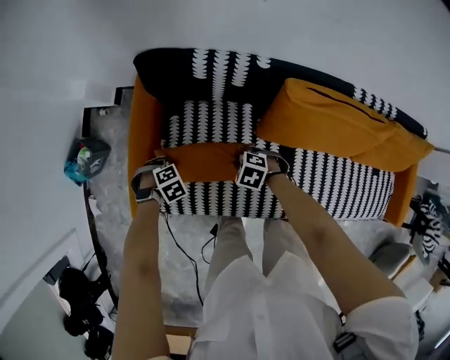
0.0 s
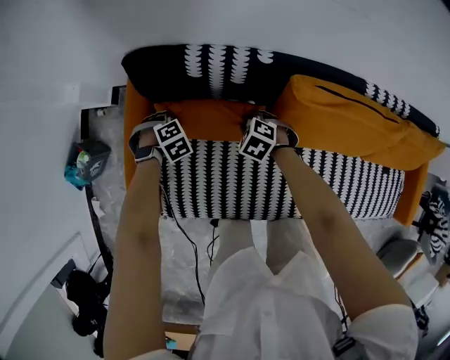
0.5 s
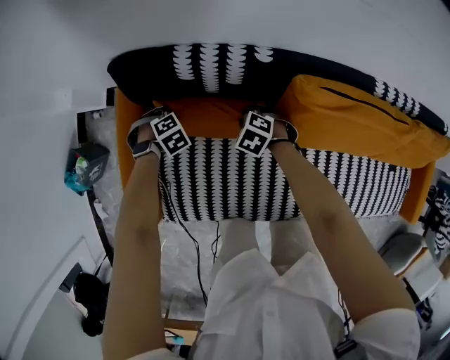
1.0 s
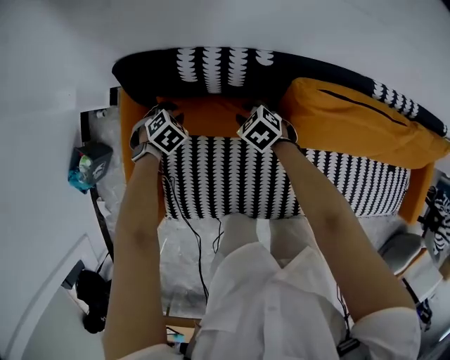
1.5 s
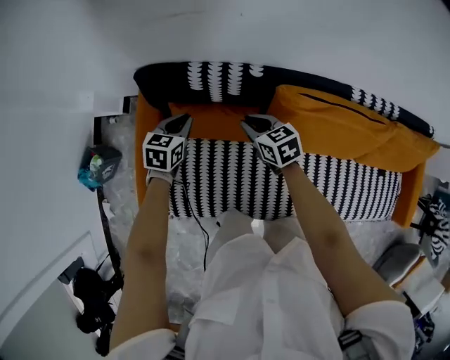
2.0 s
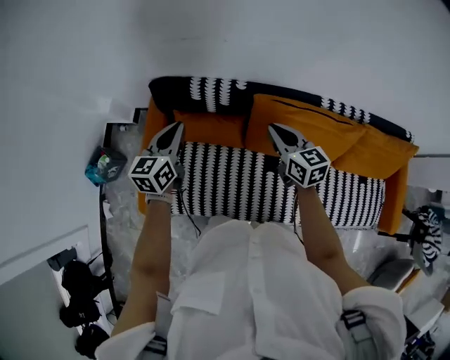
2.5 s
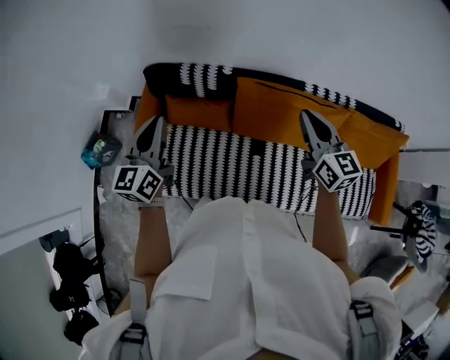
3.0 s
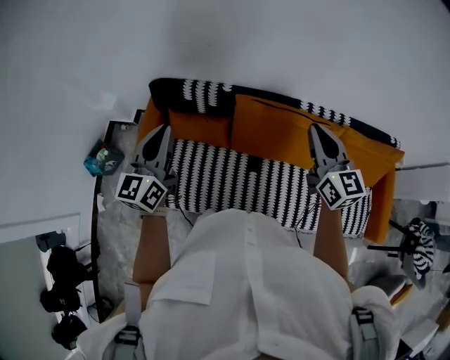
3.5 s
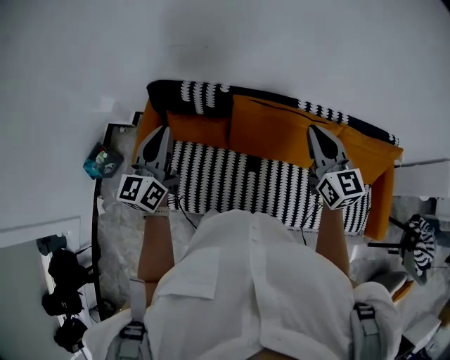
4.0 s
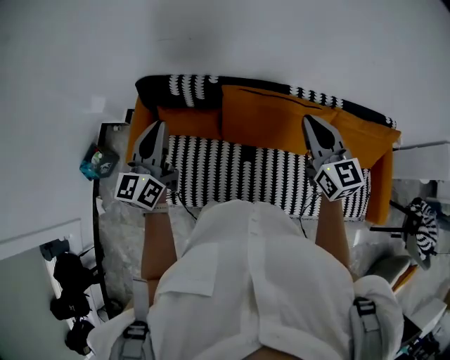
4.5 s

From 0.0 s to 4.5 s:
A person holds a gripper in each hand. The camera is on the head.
From 0.0 s to 2.0 s: The left gripper ends up roughly 25 cm from where it was, and tilts its fingers roughly 40 degrees upward. The right gripper moves some 25 cm, and changes its angle by roughly 60 degrees.
From 2.0 s to 4.5 s: The left gripper travels upward and backward by some 40 cm, and points its fingers approximately 50 degrees further upward. Meanwhile the right gripper heads upward, to the right and backward, covering some 50 cm, and points its fingers some 30 degrees further upward.

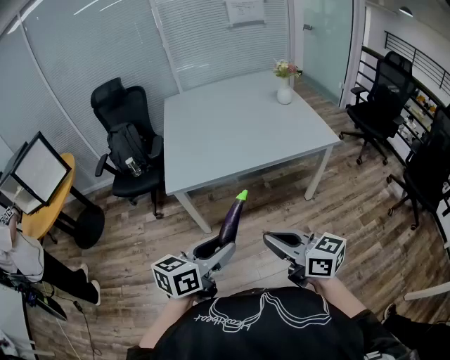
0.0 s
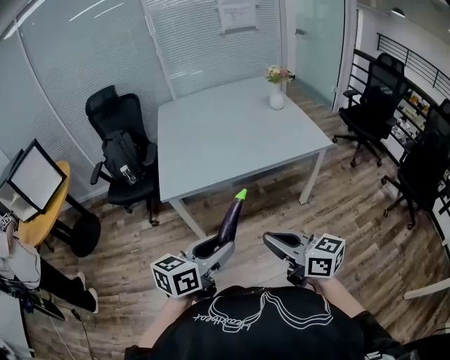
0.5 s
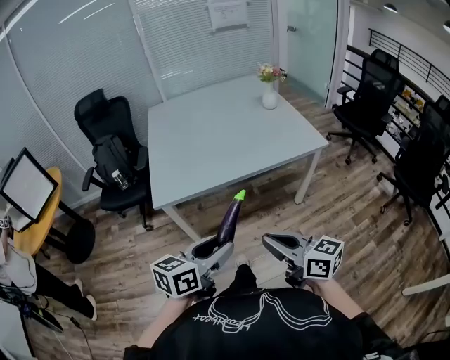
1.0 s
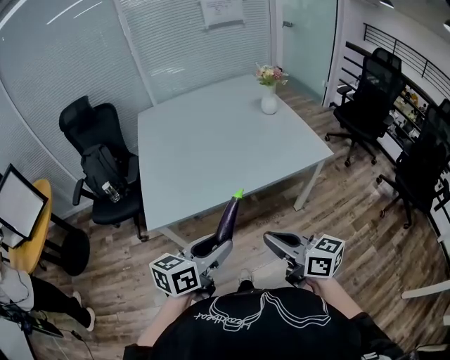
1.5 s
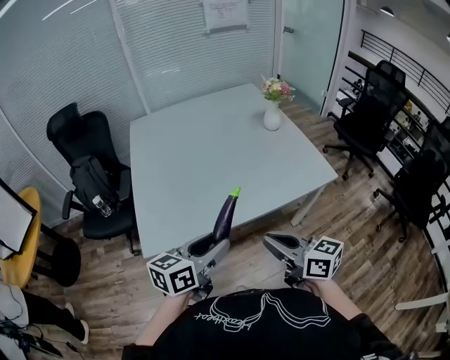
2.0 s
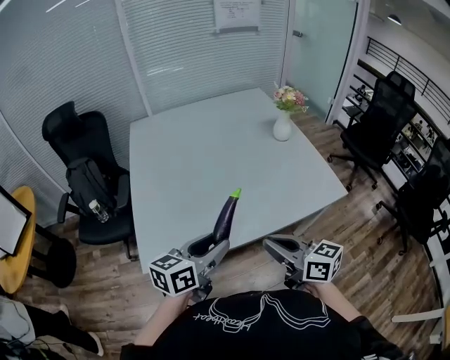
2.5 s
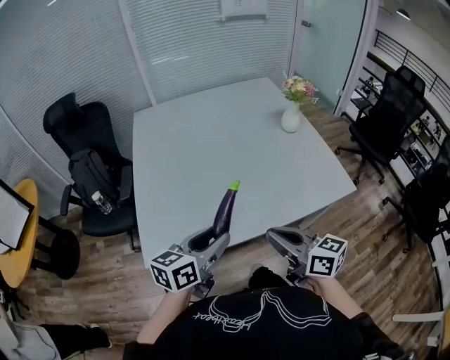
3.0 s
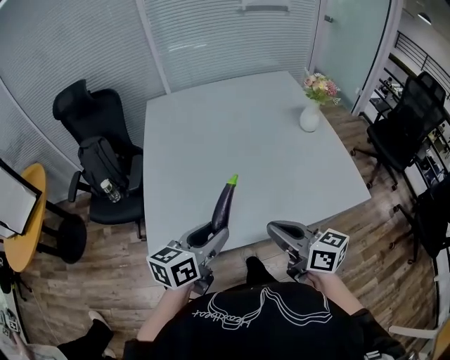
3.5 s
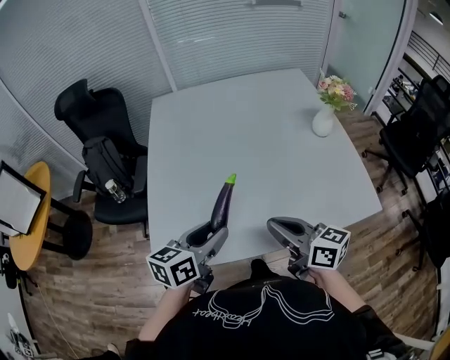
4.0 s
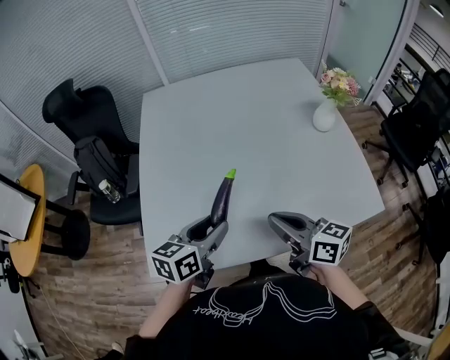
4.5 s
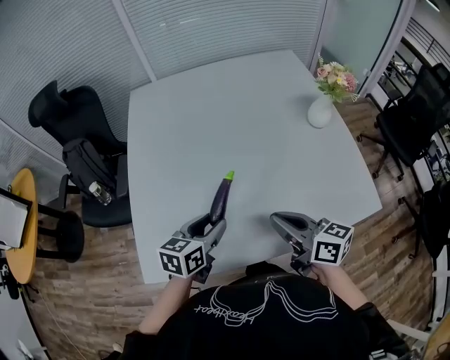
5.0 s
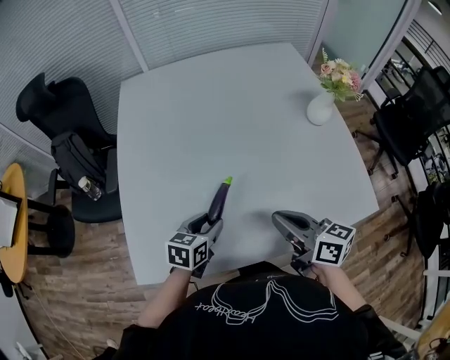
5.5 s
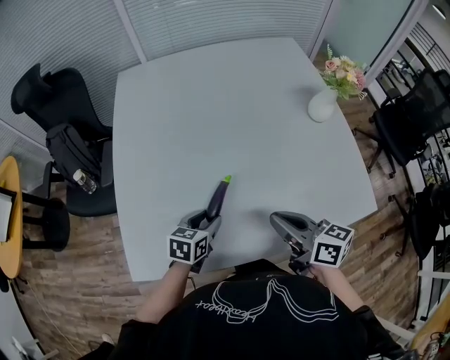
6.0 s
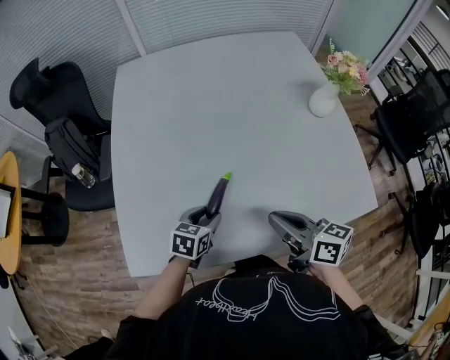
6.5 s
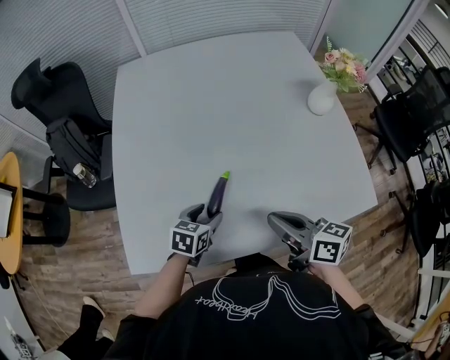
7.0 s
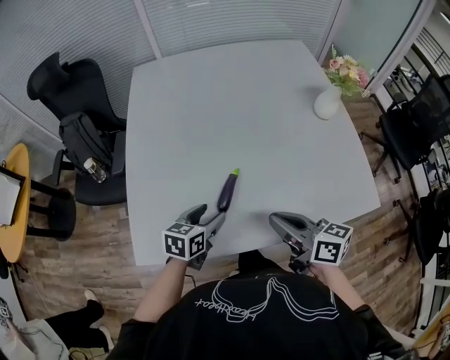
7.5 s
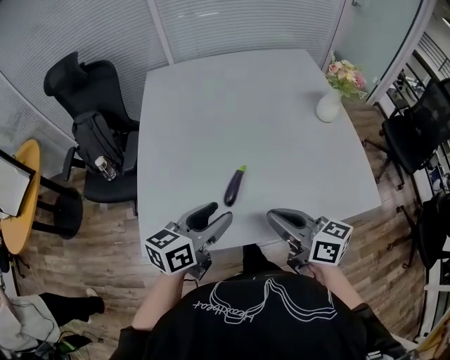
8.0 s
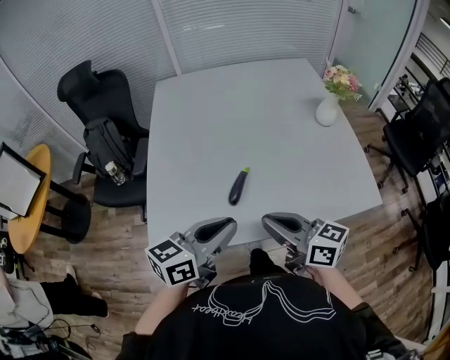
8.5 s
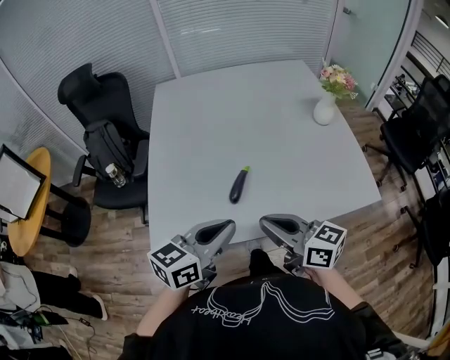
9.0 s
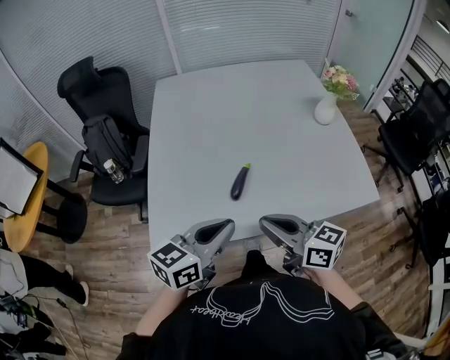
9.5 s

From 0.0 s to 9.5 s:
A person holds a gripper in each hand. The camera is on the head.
From 0.0 s to 2.0 s: Both grippers travel together forward, roughly 30 cm.
From 2.0 s to 4.0 s: Both grippers move forward, about 20 cm.
From 4.0 s to 5.5 s: The left gripper is displaced downward and forward by approximately 20 cm, and turns by some 20 degrees. The right gripper moves forward, downward and to the right, approximately 10 cm.
From 5.5 s to 7.5 s: The right gripper shifts by some 5 cm.
From 7.5 s to 9.5 s: The right gripper moves backward, to the left and upward, roughly 15 cm, while the left gripper travels upward and backward by some 25 cm, turns by approximately 30 degrees, and closes up.

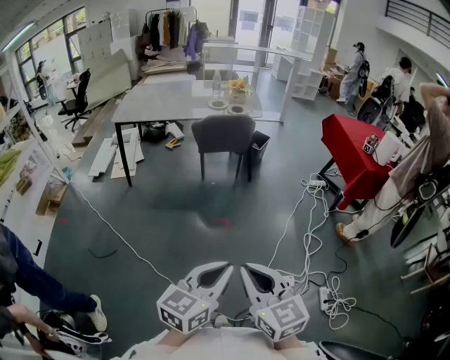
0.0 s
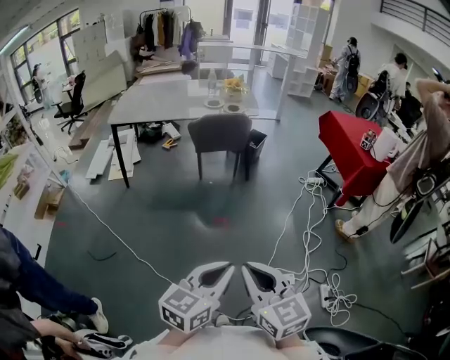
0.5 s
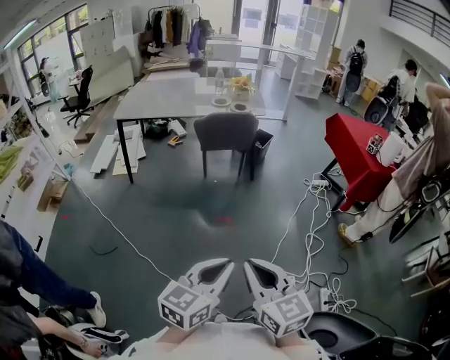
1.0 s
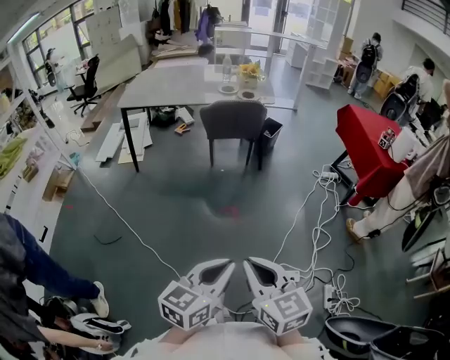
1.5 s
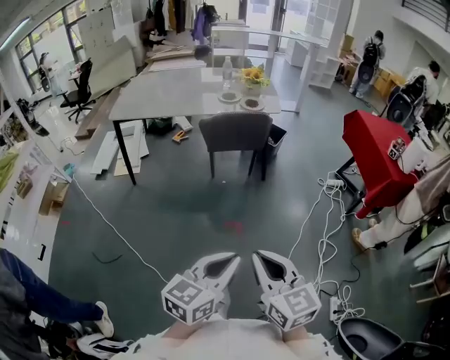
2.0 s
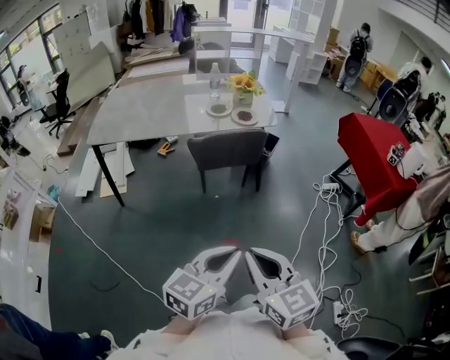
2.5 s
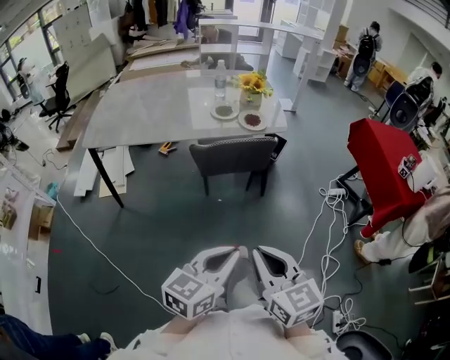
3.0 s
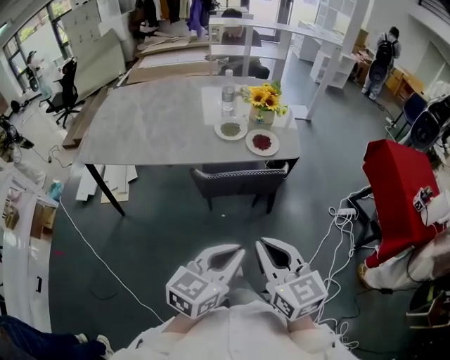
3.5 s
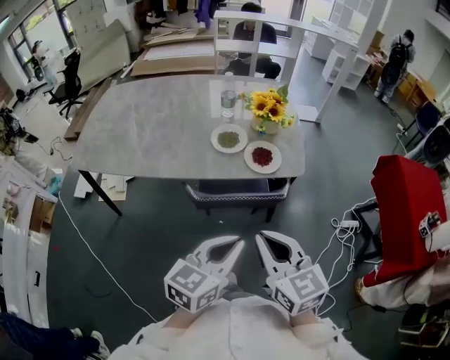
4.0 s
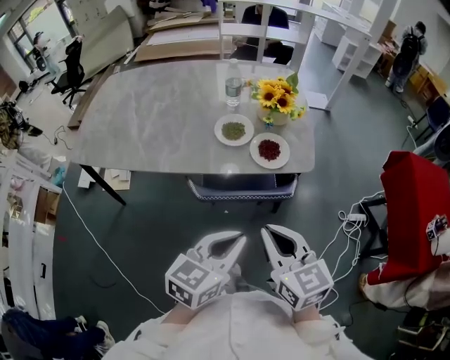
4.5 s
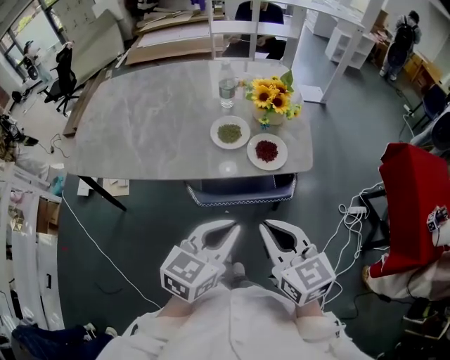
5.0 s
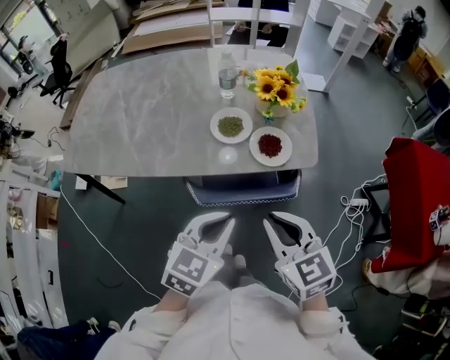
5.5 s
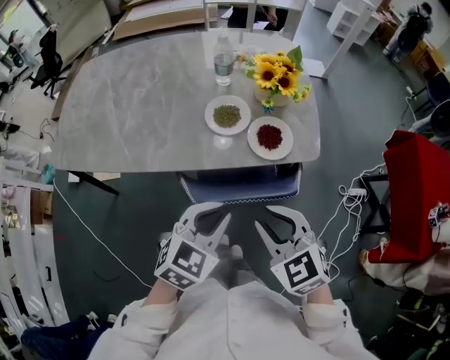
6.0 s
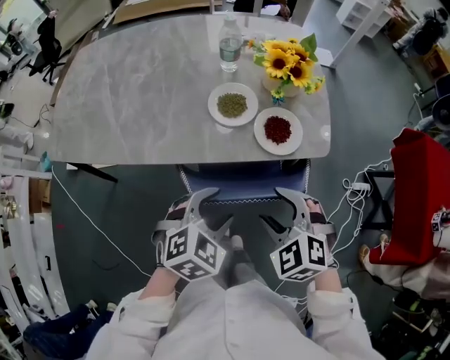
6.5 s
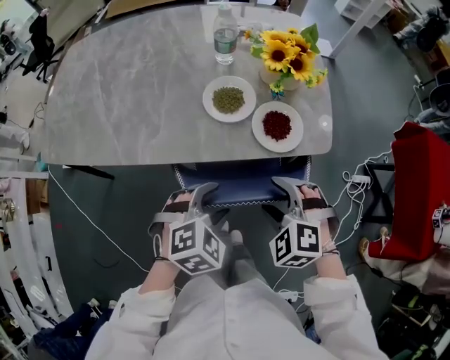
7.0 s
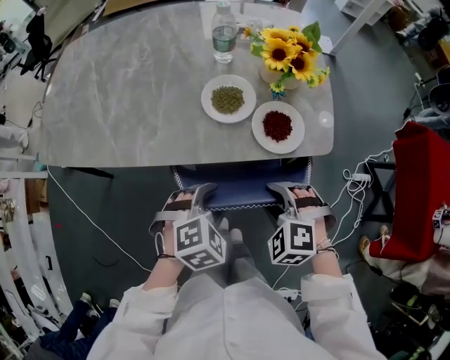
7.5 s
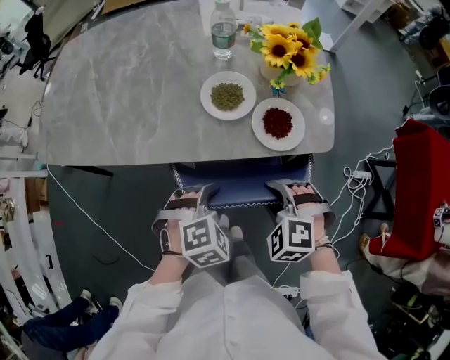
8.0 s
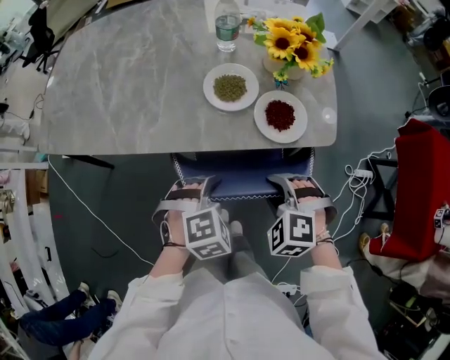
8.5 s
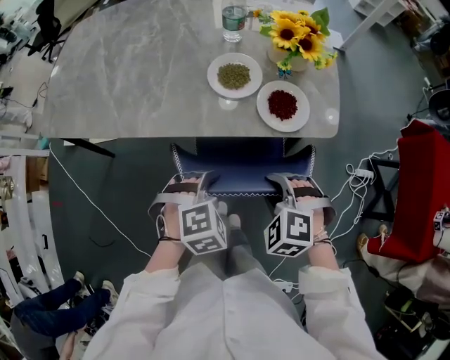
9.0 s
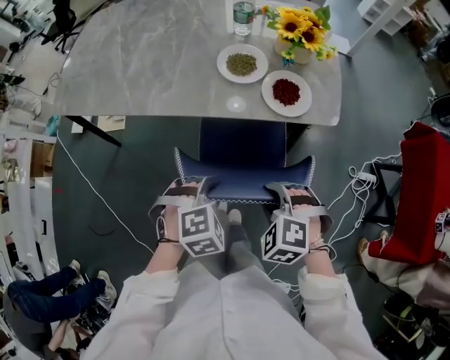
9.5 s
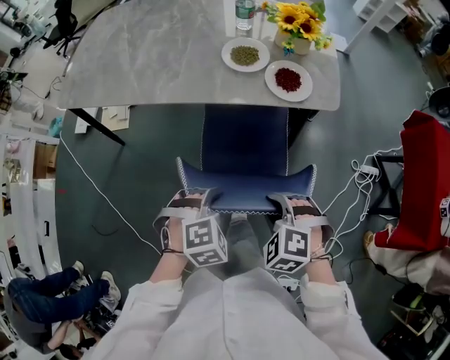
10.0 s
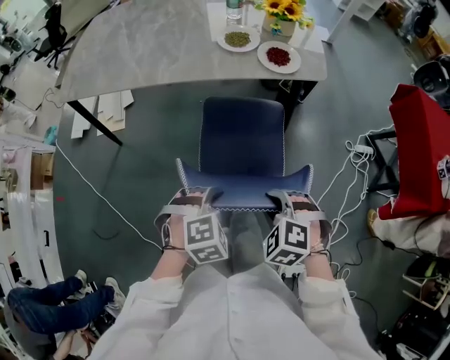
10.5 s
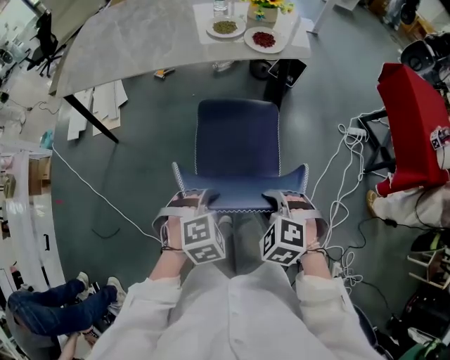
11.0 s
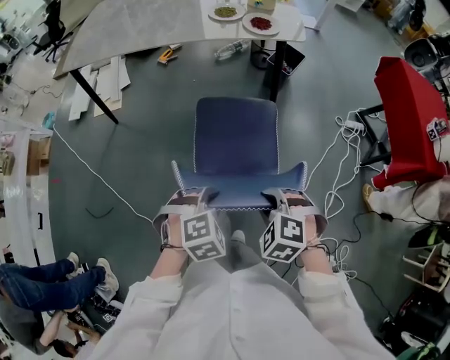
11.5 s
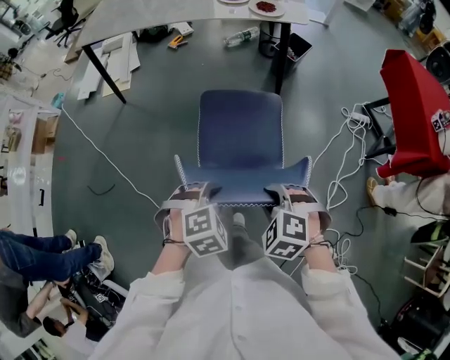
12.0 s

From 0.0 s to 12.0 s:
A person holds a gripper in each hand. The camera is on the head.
From 0.0 s to 2.0 s: Both grippers move forward, about 20 cm.
From 2.0 s to 4.0 s: The pair of grippers is taken forward, some 60 cm.
From 4.0 s to 6.0 s: The right gripper shifts some 15 cm forward and downward, and swivels roughly 30 degrees; the left gripper is displaced forward, downward and to the left by roughly 15 cm, and swivels about 30 degrees.
From 6.0 s to 8.0 s: The right gripper shifts about 15 cm downward and forward, turns by about 40 degrees, and opens and closes again; the left gripper heads downward, covering about 15 cm, rotates approximately 40 degrees, and opens up.
From 8.0 s to 10.0 s: The two grippers go approximately 20 cm backward.
From 10.0 s to 12.0 s: Both grippers move backward, roughly 40 cm.

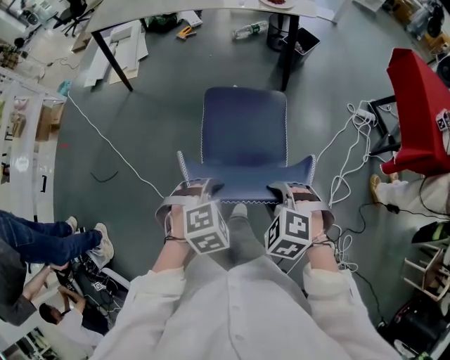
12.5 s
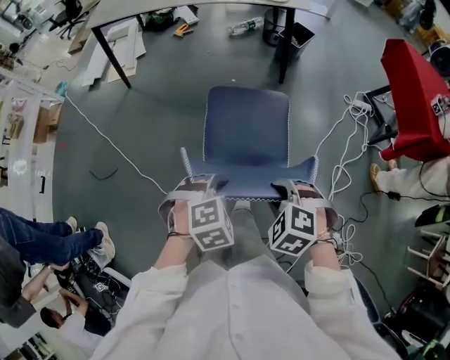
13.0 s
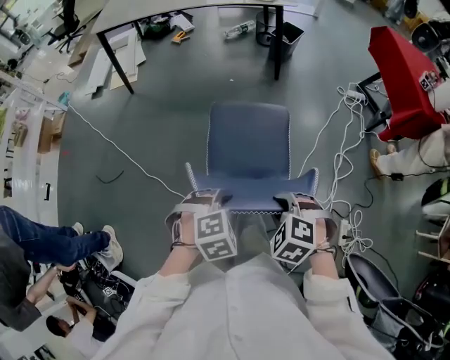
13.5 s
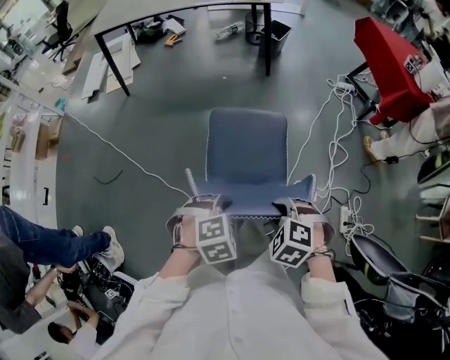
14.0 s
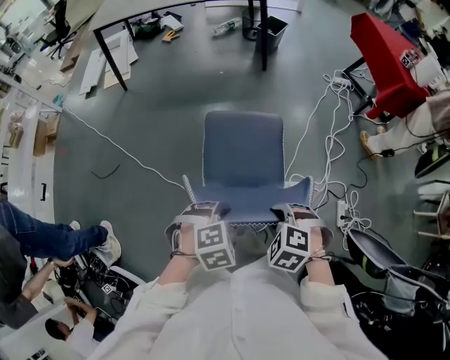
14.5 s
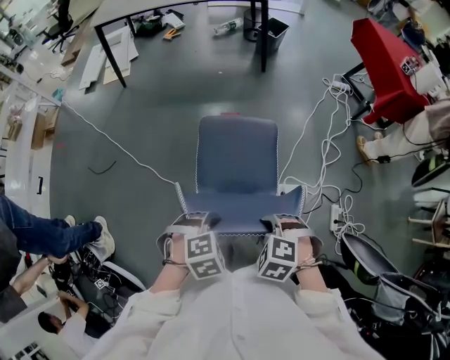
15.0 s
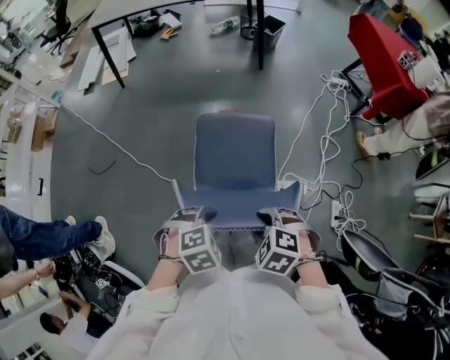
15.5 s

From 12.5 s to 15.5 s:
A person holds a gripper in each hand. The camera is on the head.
From 12.5 s to 14.0 s: The grippers both shift backward by some 30 cm.
From 14.0 s to 15.5 s: The left gripper shifts by approximately 10 cm; the right gripper shifts by some 10 cm.
